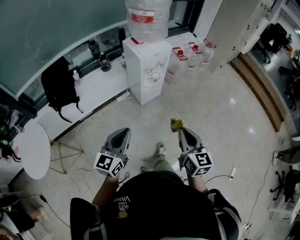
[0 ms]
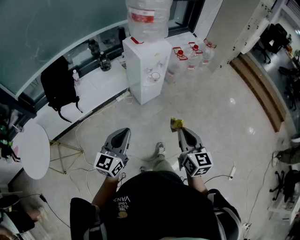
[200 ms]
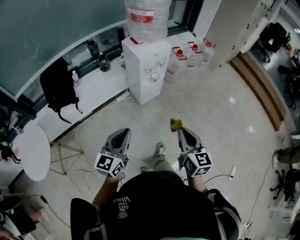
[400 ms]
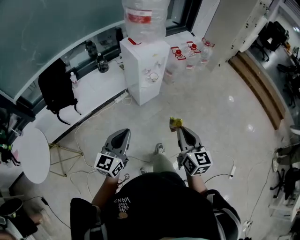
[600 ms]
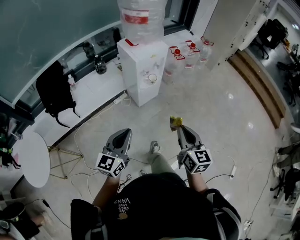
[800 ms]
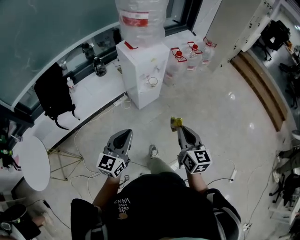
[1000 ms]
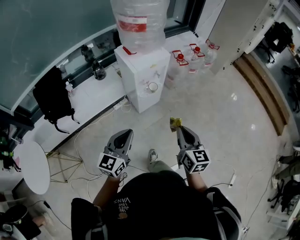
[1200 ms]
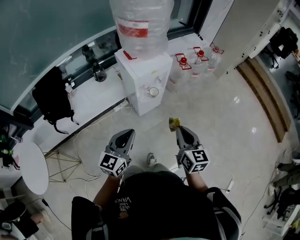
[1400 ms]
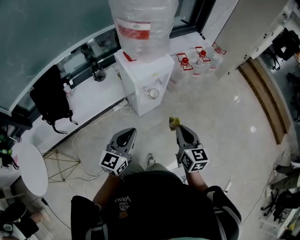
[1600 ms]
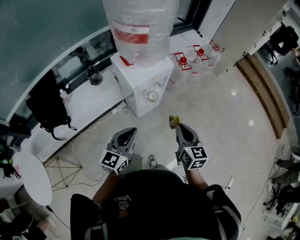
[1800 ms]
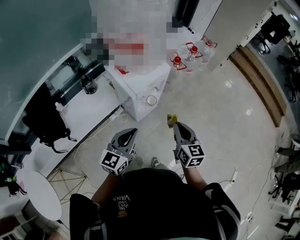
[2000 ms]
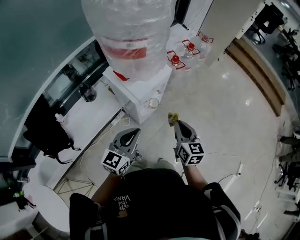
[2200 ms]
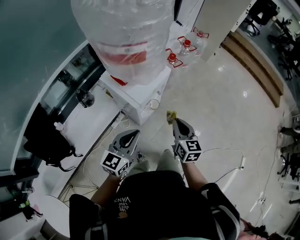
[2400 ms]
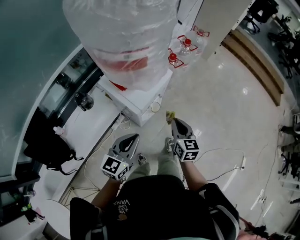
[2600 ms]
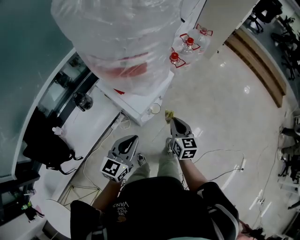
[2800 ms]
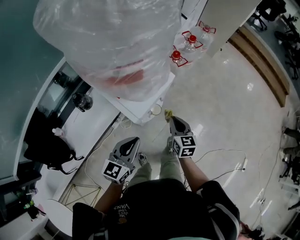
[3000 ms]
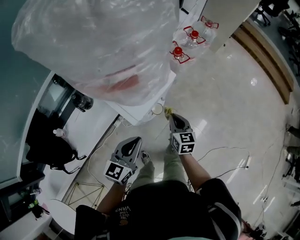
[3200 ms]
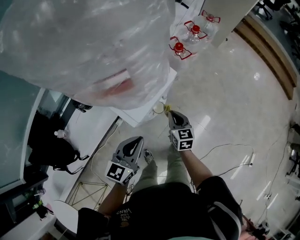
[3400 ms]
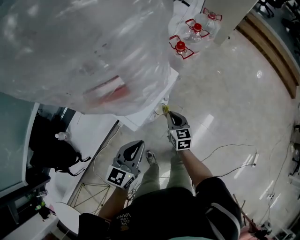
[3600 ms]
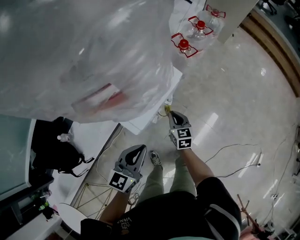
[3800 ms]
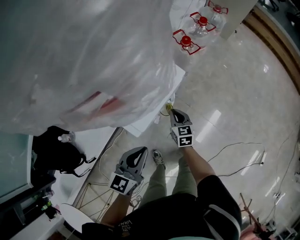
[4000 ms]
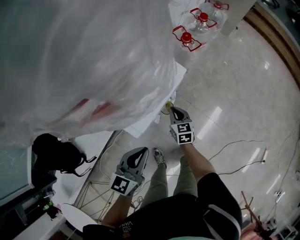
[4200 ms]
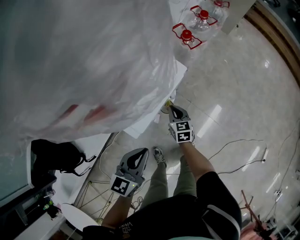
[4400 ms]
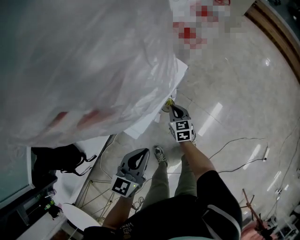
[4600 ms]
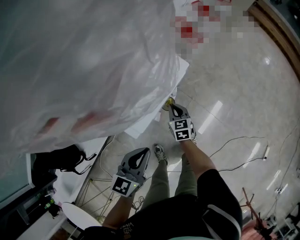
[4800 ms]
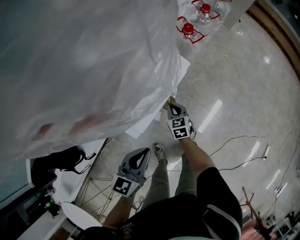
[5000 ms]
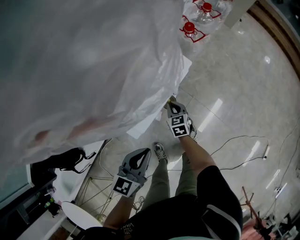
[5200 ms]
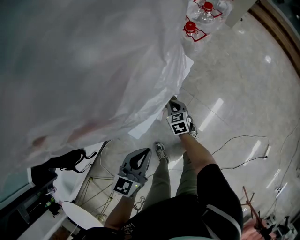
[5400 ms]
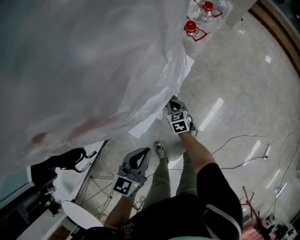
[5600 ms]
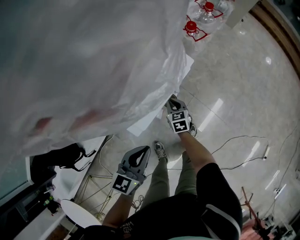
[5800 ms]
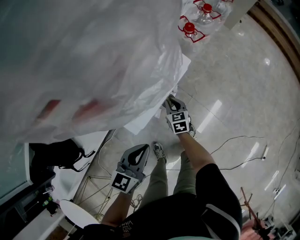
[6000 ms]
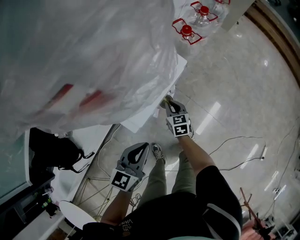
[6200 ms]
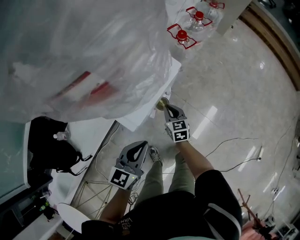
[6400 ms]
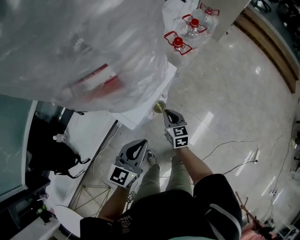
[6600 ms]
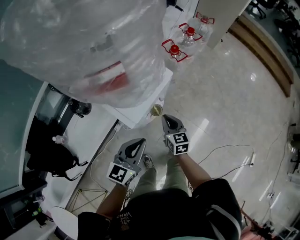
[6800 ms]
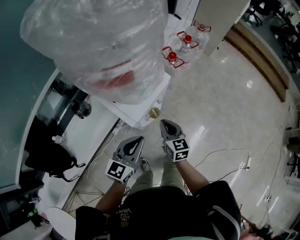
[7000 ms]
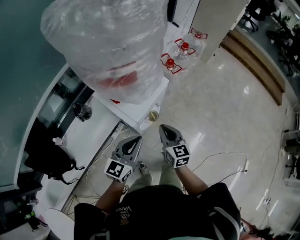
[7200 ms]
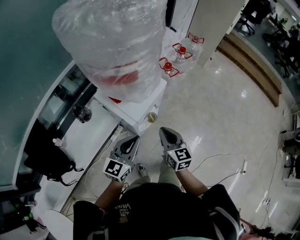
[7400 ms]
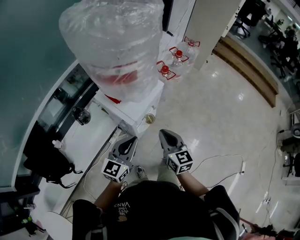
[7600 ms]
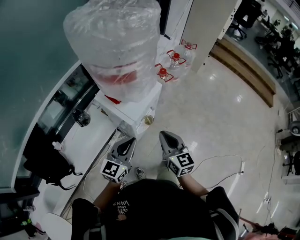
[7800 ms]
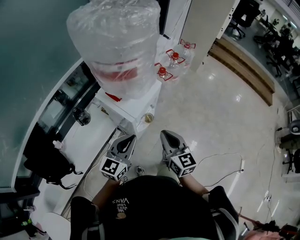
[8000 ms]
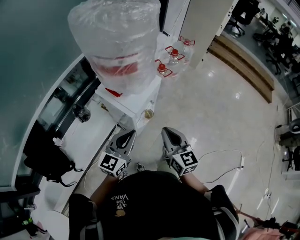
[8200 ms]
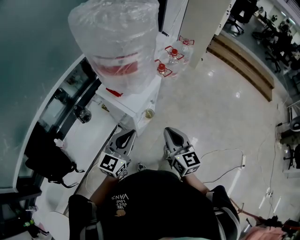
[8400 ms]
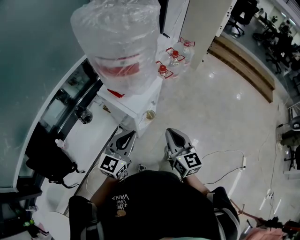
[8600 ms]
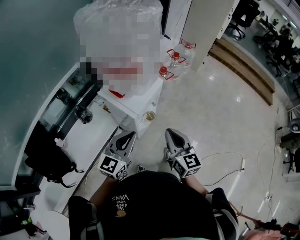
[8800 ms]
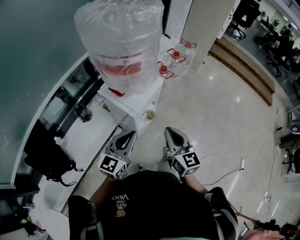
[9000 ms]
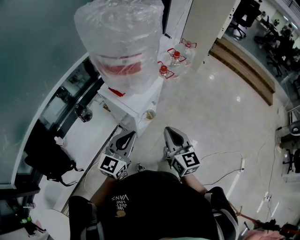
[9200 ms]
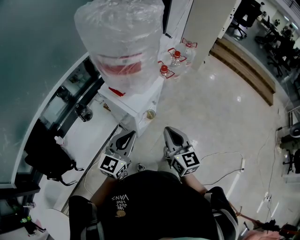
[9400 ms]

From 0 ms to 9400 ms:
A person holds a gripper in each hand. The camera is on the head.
From 0 ms to 1600 ms: Both grippers move forward, approximately 30 cm.
From 1600 ms to 3200 ms: The left gripper travels forward and to the left by roughly 25 cm, and swivels some 20 degrees. Meanwhile the right gripper goes roughly 35 cm forward, downward and to the left.
From 3200 ms to 4800 ms: The left gripper goes some 10 cm downward. The right gripper is displaced downward by approximately 20 cm.
From 4800 ms to 6200 ms: The grippers stay close to where they were, moving slightly.
From 6200 ms to 7800 ms: The right gripper goes about 40 cm upward and backward, and swivels roughly 30 degrees, while the left gripper heads upward and backward, covering approximately 15 cm.
From 7800 ms to 9400 ms: The right gripper ends up some 5 cm from where it was.

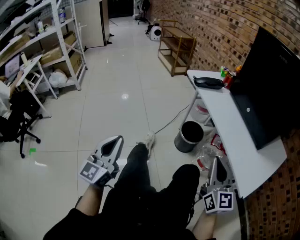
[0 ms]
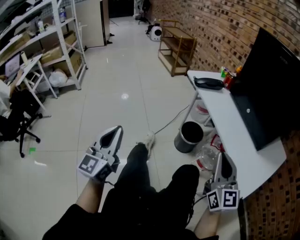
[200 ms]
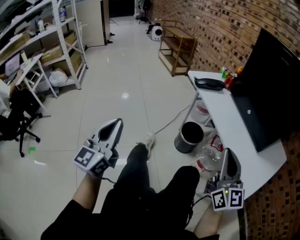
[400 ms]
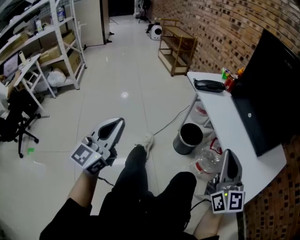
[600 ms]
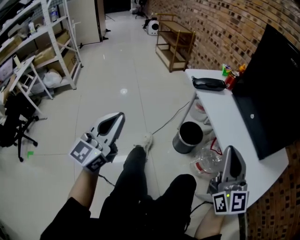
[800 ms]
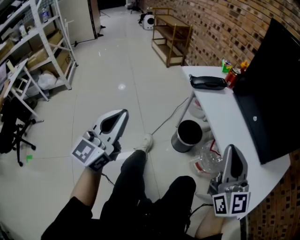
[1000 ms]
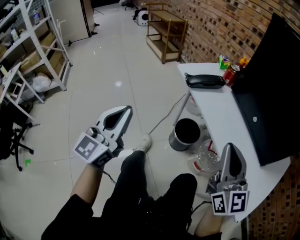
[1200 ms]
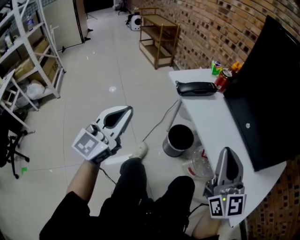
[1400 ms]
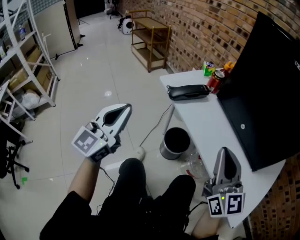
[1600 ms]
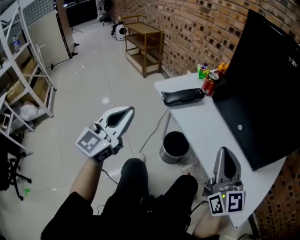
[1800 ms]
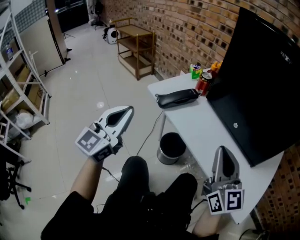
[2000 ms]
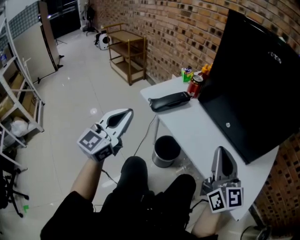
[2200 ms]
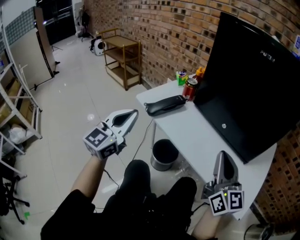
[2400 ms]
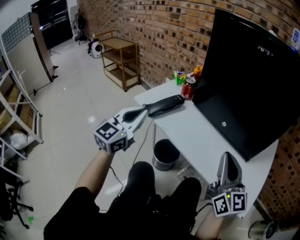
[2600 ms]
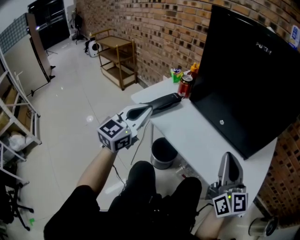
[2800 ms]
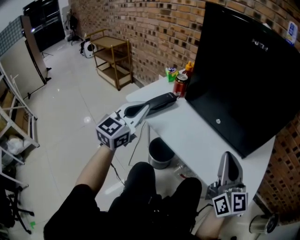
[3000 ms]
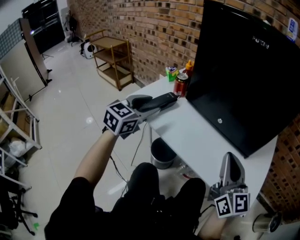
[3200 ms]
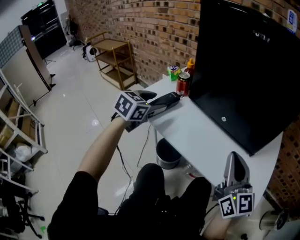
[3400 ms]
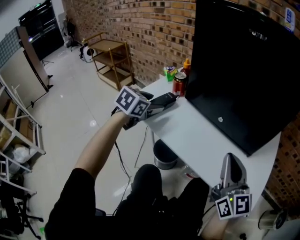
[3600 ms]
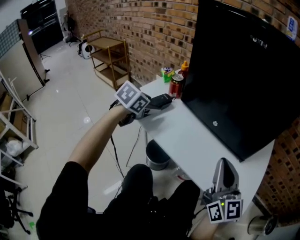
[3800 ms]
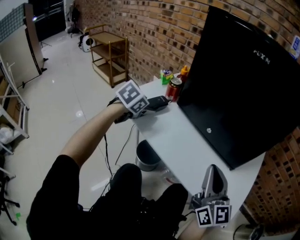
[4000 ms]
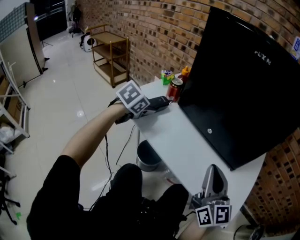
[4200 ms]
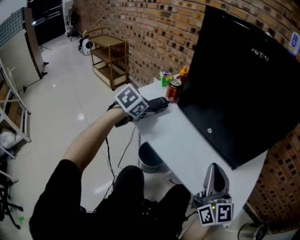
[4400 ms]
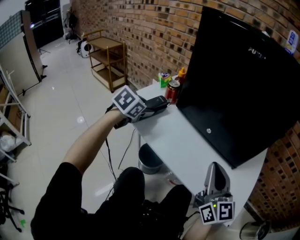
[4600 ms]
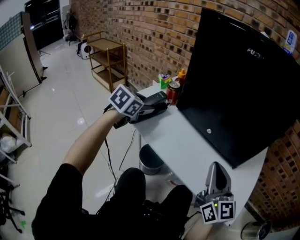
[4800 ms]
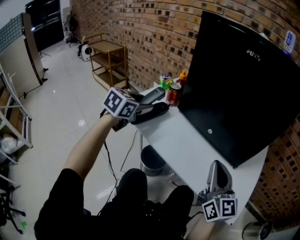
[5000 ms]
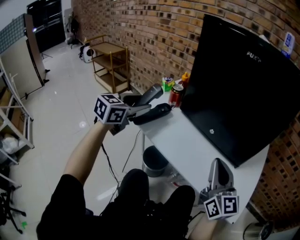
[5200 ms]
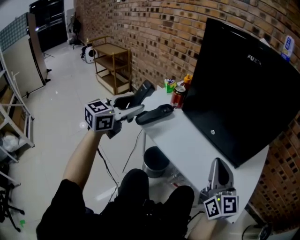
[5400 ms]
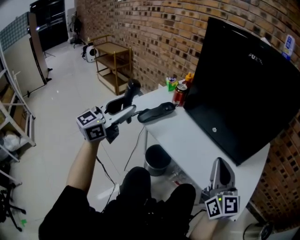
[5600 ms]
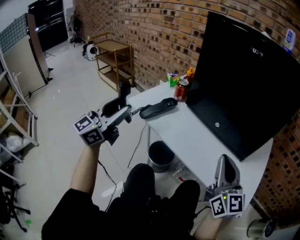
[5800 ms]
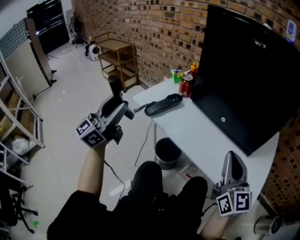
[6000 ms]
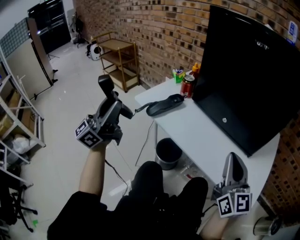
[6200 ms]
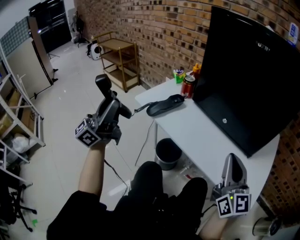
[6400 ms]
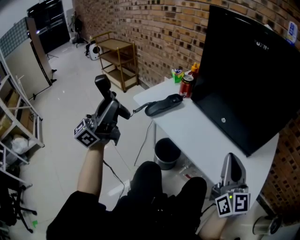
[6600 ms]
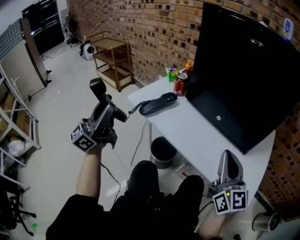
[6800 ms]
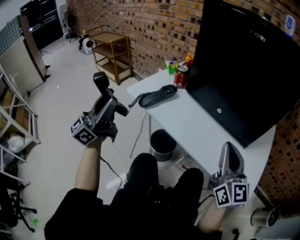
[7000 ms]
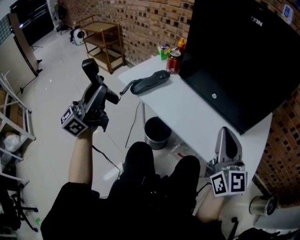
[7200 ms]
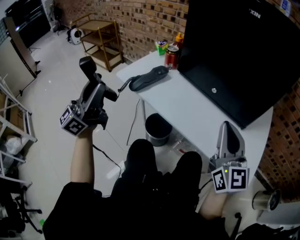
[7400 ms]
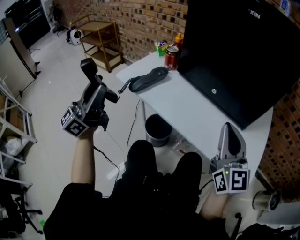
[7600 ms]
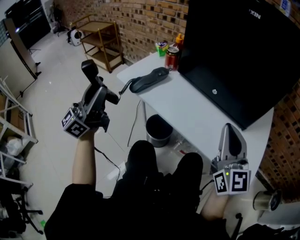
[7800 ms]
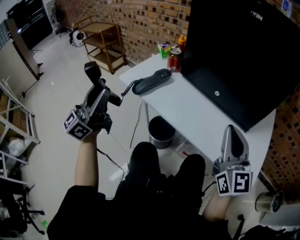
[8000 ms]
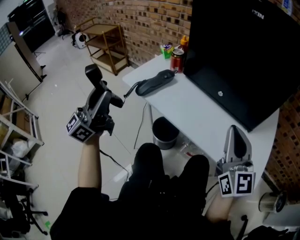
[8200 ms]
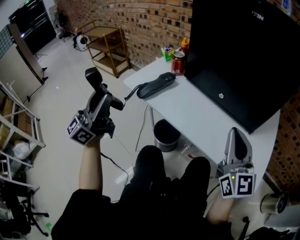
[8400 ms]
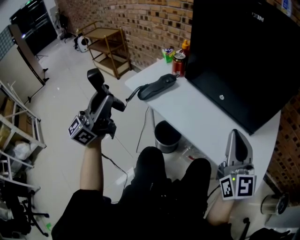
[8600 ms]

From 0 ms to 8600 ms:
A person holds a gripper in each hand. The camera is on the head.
From 0 ms to 1400 ms: The right gripper moves forward and upward, some 15 cm. Meanwhile the left gripper travels forward by about 25 cm.
From 1400 ms to 2800 ms: The right gripper moves to the right, roughly 10 cm, and rotates approximately 20 degrees. The left gripper is displaced forward and to the right by some 20 cm, and swivels approximately 20 degrees.
From 2800 ms to 4400 ms: The left gripper shifts about 15 cm forward and downward, tilts its fingers about 50 degrees downward, and opens up.
From 4400 ms to 5800 ms: The left gripper moves backward, upward and to the left, some 25 cm, and angles its fingers upward, by about 60 degrees.
From 7200 ms to 8600 ms: The grippers make only small movements.

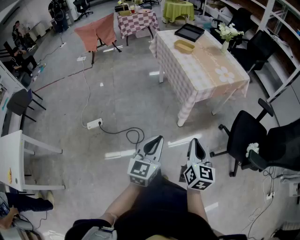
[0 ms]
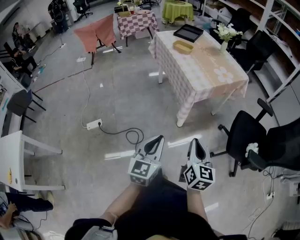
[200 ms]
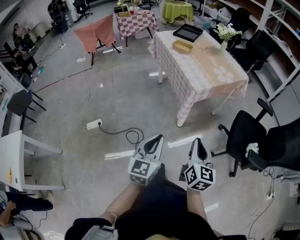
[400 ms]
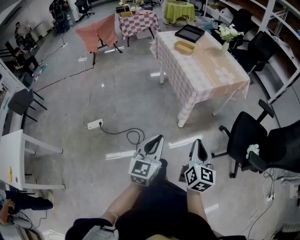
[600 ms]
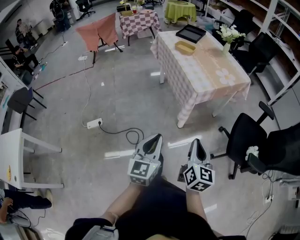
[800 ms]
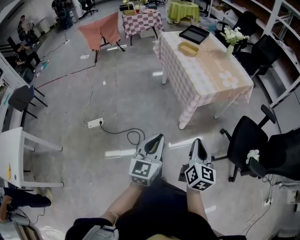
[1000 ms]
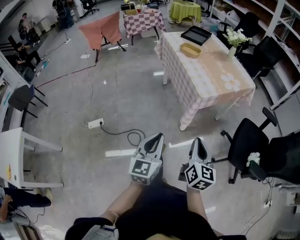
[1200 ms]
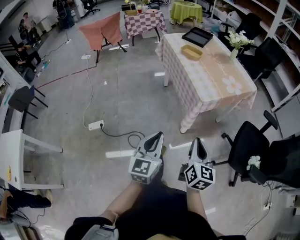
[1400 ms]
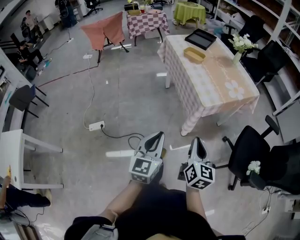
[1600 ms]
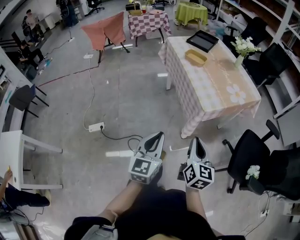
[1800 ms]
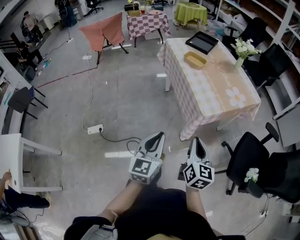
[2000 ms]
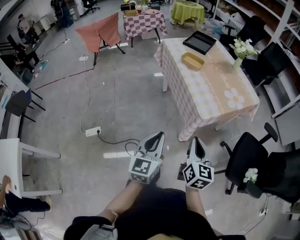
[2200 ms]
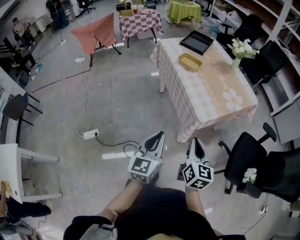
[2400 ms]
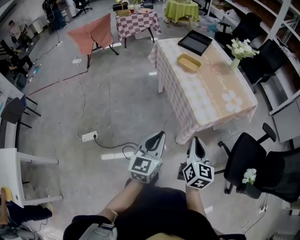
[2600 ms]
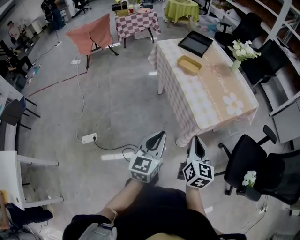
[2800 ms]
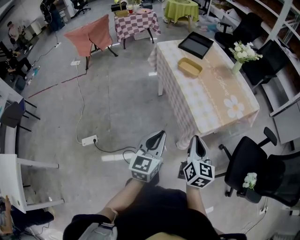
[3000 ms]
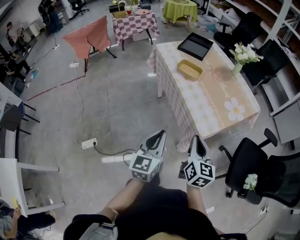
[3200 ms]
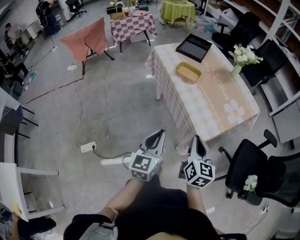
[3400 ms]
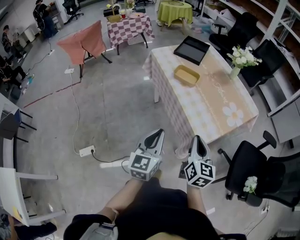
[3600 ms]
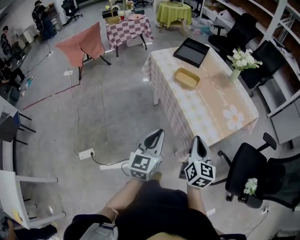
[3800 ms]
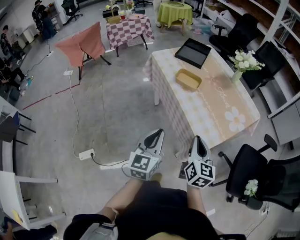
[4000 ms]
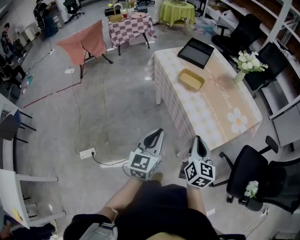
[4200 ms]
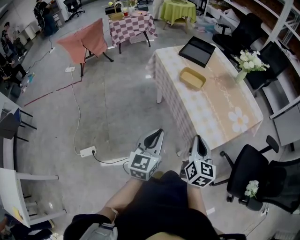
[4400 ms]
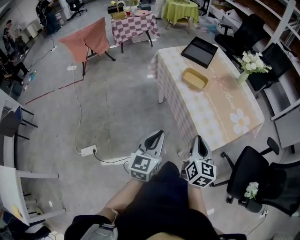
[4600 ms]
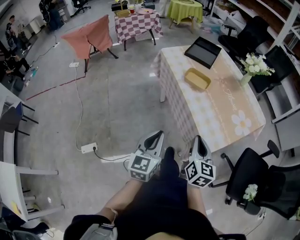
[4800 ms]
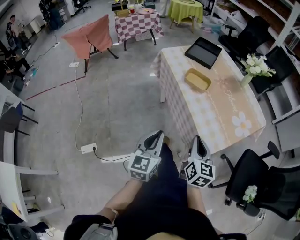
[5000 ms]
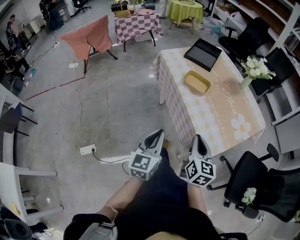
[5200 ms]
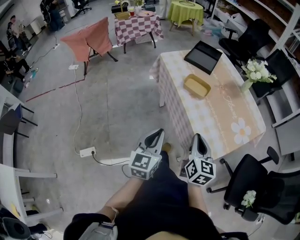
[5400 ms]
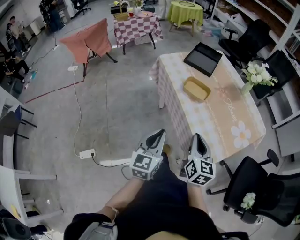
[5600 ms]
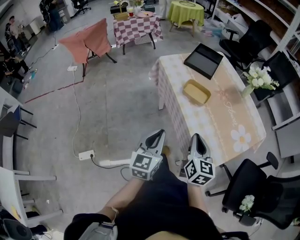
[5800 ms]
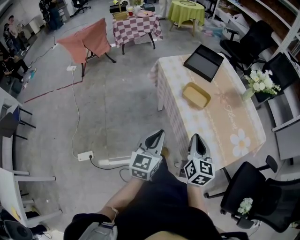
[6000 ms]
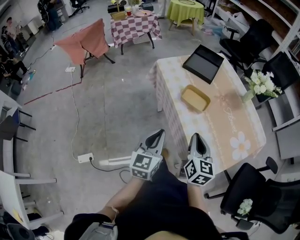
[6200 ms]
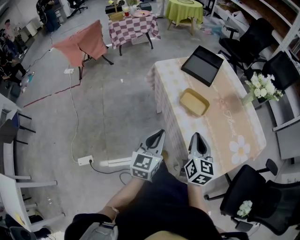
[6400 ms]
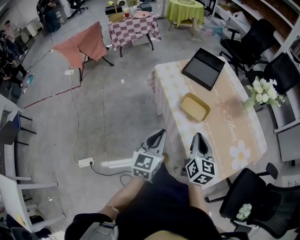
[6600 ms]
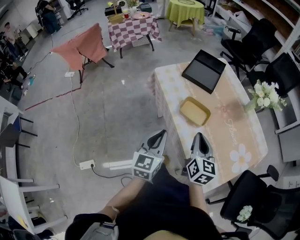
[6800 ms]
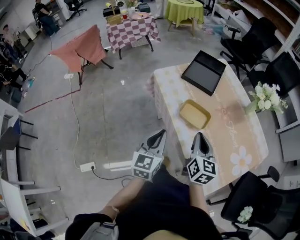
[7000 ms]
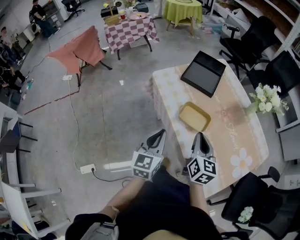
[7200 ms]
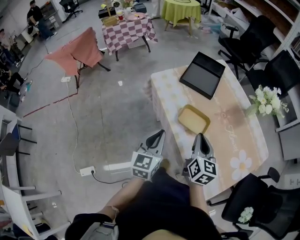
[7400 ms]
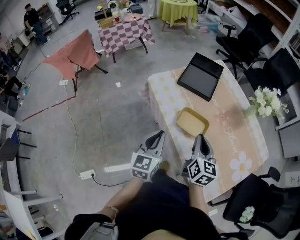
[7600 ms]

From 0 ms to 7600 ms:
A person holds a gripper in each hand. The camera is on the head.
From 0 ms to 1600 ms: The two grippers go approximately 10 cm forward.
From 1600 ms to 3000 ms: Both grippers travel together forward, about 20 cm.
From 3000 ms to 4600 ms: The right gripper travels forward by roughly 10 cm; the left gripper travels forward and to the left by approximately 10 cm.
From 4600 ms to 6000 ms: The grippers both shift forward by roughly 10 cm.
From 6000 ms to 7600 ms: The grippers both shift forward by about 20 cm.
